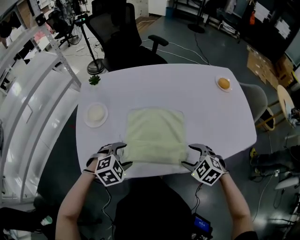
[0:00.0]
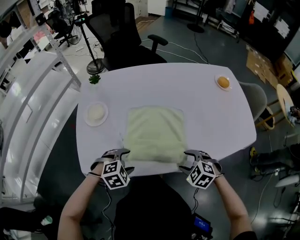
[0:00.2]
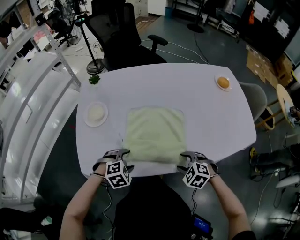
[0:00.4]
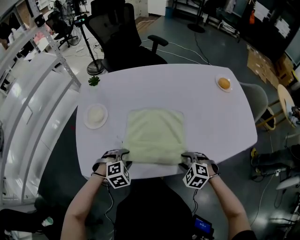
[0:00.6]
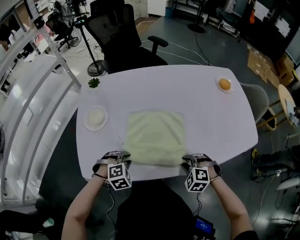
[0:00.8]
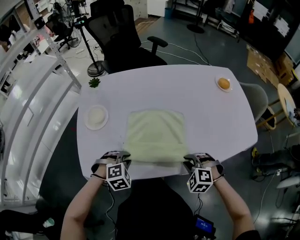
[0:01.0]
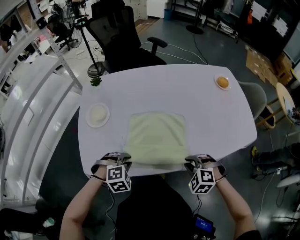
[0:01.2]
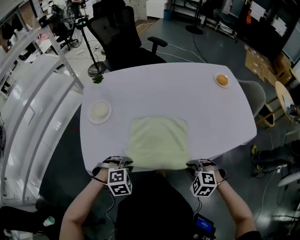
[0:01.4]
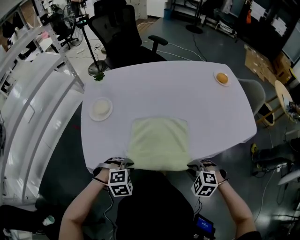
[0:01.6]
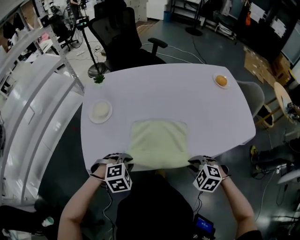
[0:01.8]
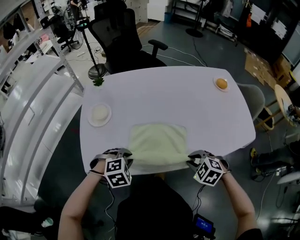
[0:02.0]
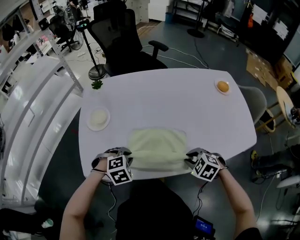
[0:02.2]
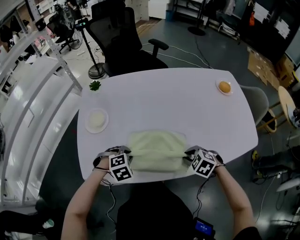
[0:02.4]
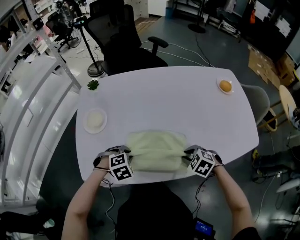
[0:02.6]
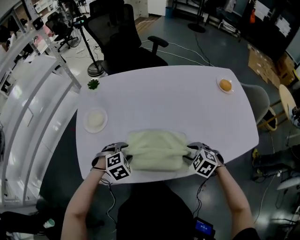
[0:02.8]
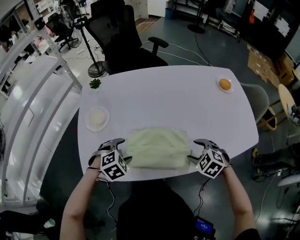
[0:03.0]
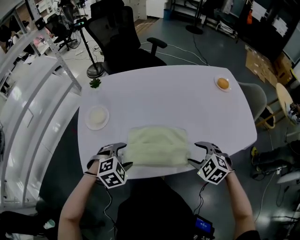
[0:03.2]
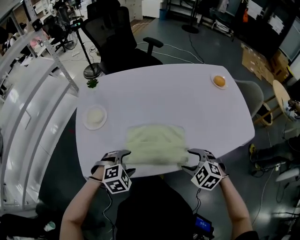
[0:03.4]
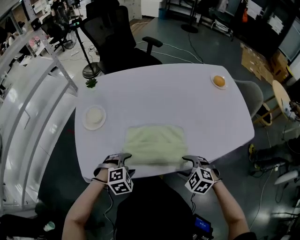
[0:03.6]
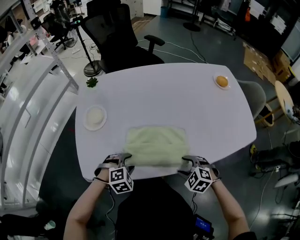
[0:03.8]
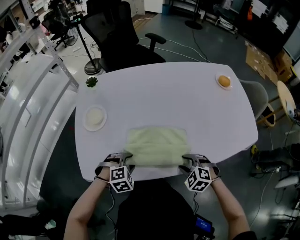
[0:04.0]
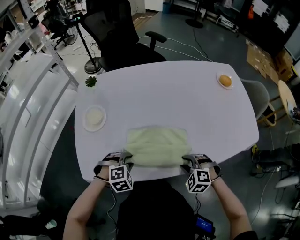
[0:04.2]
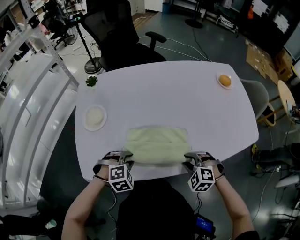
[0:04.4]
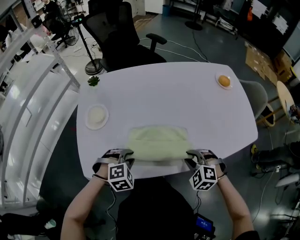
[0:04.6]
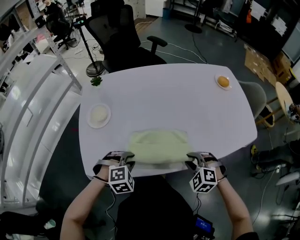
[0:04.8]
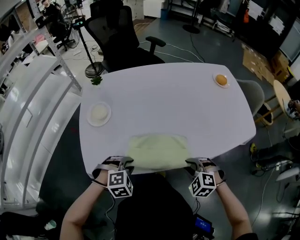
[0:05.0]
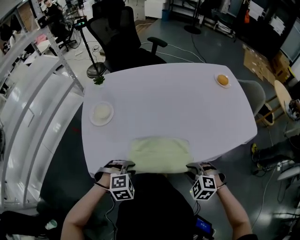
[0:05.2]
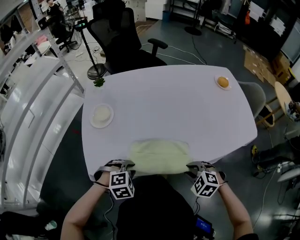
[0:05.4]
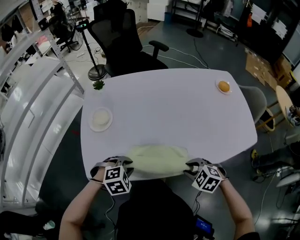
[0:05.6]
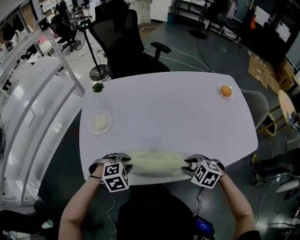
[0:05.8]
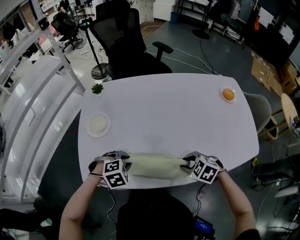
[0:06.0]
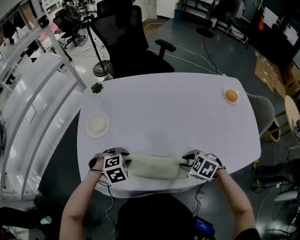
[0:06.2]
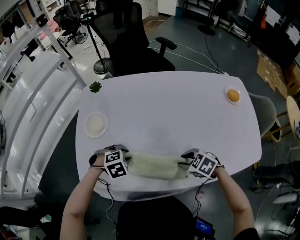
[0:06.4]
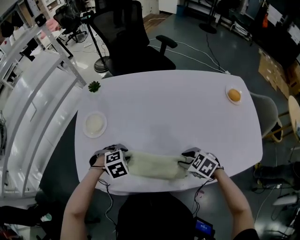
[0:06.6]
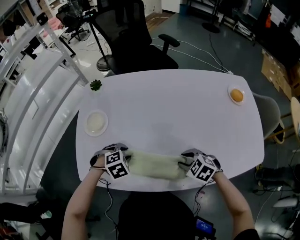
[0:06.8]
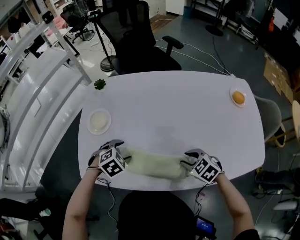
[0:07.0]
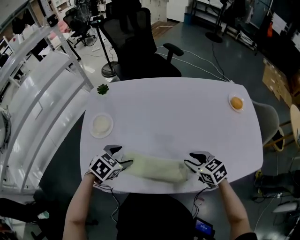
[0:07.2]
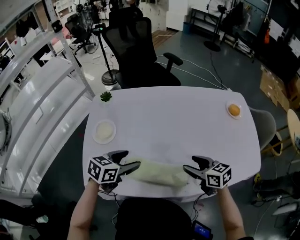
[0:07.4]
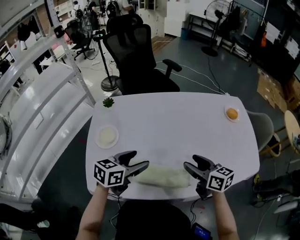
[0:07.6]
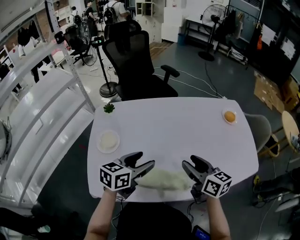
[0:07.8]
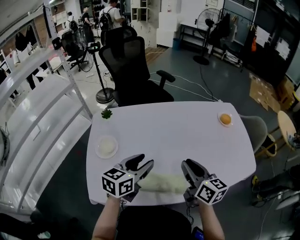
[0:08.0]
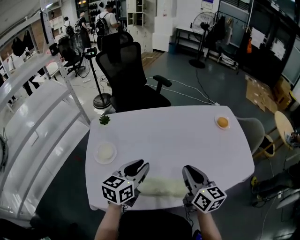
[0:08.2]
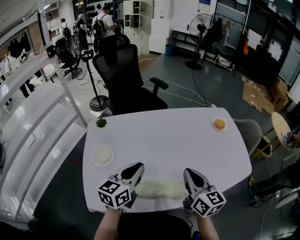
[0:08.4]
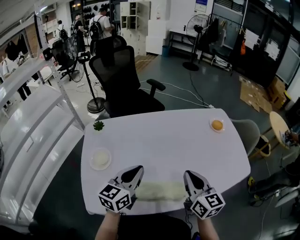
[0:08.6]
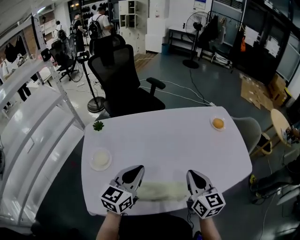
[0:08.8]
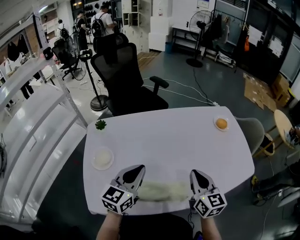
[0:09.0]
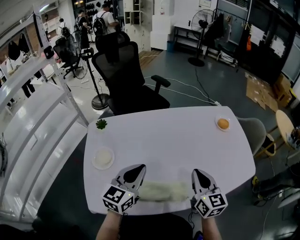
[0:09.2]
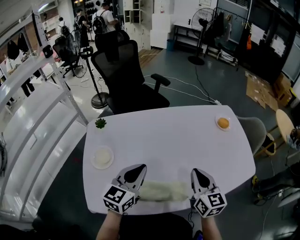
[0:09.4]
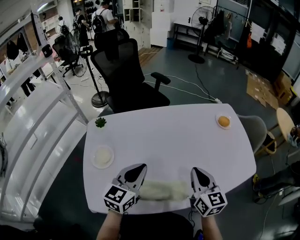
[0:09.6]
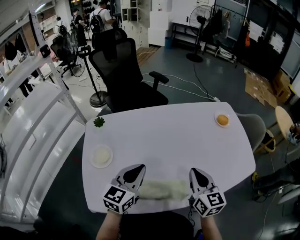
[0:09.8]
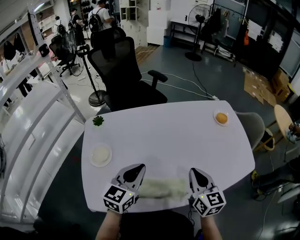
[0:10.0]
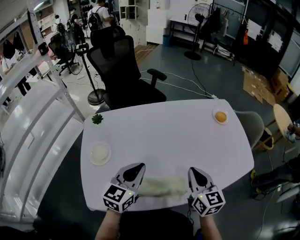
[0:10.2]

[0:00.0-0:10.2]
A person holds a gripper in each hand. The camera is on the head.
0:00.0 to 0:01.4: The grippers both shift backward by approximately 10 cm. The left gripper closes. Meanwhile the right gripper closes up.
0:01.4 to 0:03.0: Both grippers move forward, approximately 10 cm. The left gripper opens. The right gripper opens up.
0:03.0 to 0:04.4: The left gripper closes up. Meanwhile the right gripper travels backward by about 5 cm, and closes up.
0:04.4 to 0:05.8: The right gripper travels backward and back again, roughly 10 cm each way; the left gripper goes backward and returns, about 10 cm each way.
0:05.8 to 0:07.2: The right gripper changes place by about 10 cm, and rotates roughly 30 degrees, while the left gripper shifts by about 10 cm, swivels approximately 40 degrees, and opens.
0:07.2 to 0:08.8: Both grippers move upward, some 15 cm. The right gripper tips its fingers upward by about 30 degrees, and closes its fingers, while the left gripper points its fingers about 50 degrees further upward, and closes up.
0:08.8 to 0:10.2: The grippers move only a little.

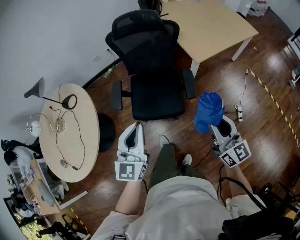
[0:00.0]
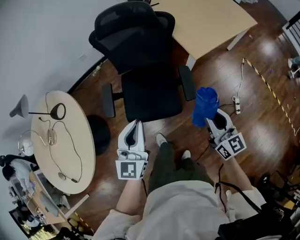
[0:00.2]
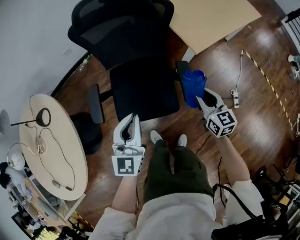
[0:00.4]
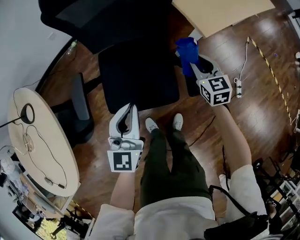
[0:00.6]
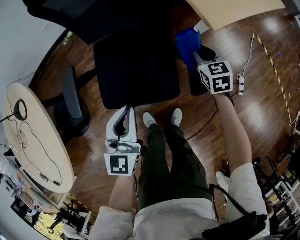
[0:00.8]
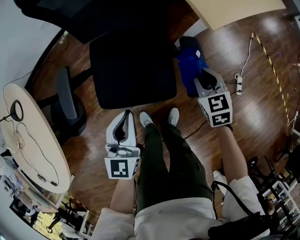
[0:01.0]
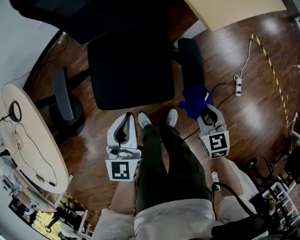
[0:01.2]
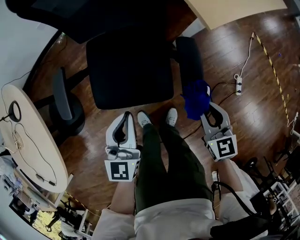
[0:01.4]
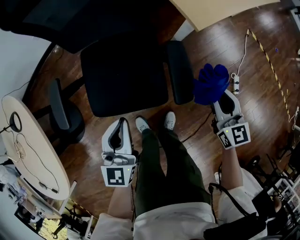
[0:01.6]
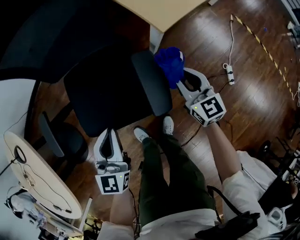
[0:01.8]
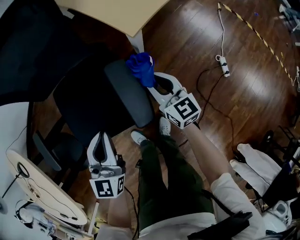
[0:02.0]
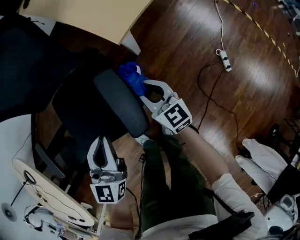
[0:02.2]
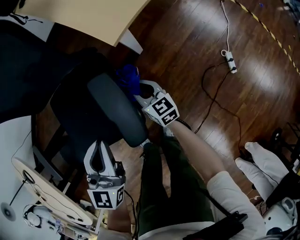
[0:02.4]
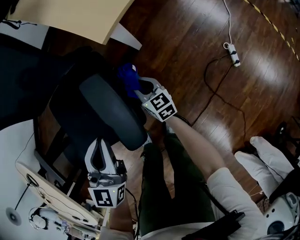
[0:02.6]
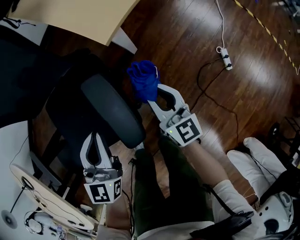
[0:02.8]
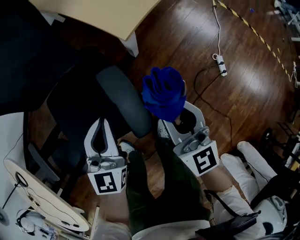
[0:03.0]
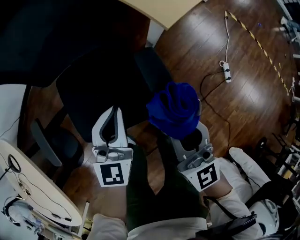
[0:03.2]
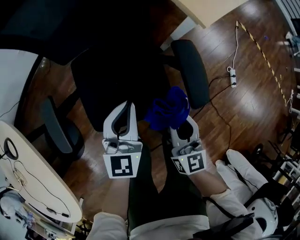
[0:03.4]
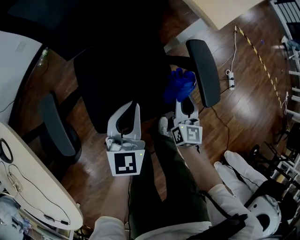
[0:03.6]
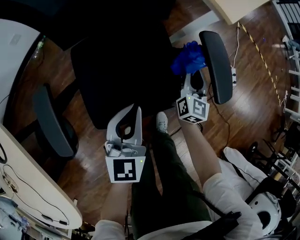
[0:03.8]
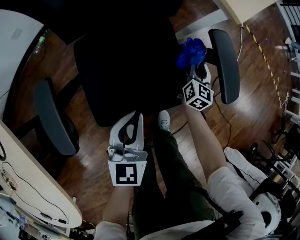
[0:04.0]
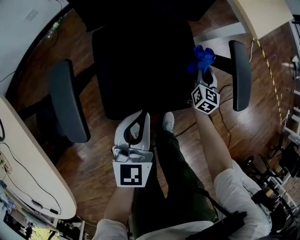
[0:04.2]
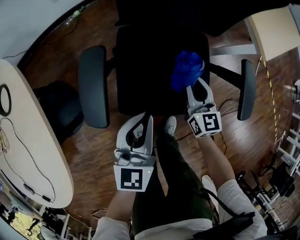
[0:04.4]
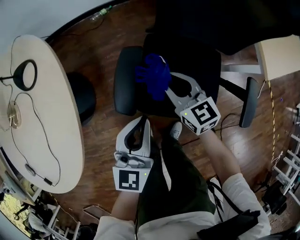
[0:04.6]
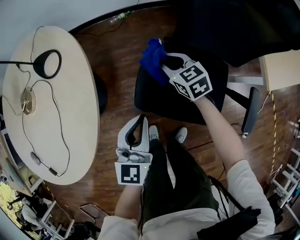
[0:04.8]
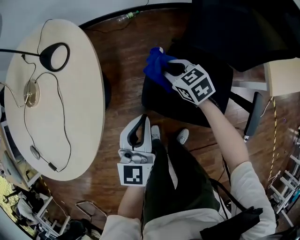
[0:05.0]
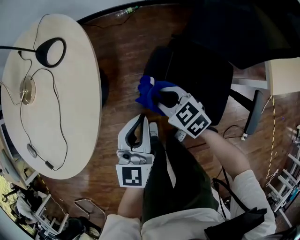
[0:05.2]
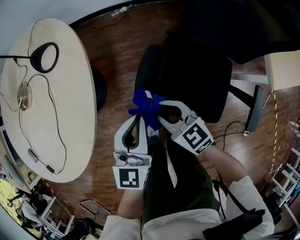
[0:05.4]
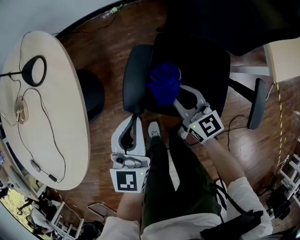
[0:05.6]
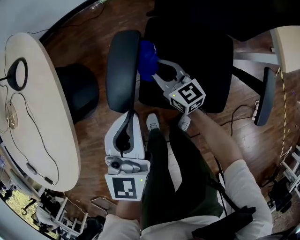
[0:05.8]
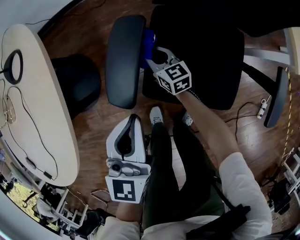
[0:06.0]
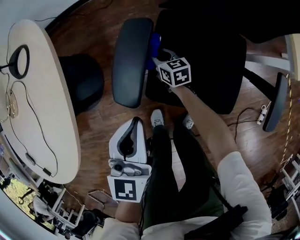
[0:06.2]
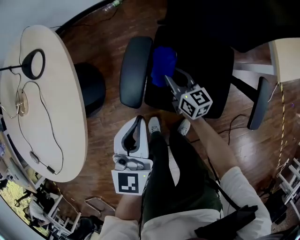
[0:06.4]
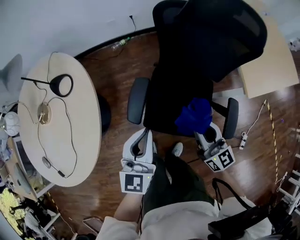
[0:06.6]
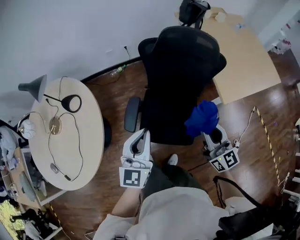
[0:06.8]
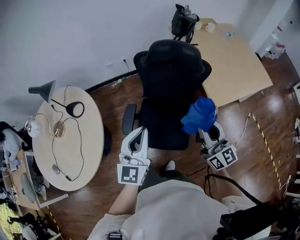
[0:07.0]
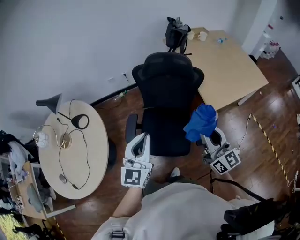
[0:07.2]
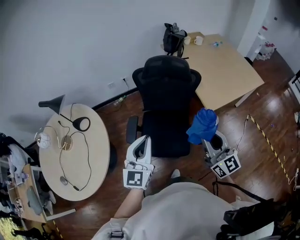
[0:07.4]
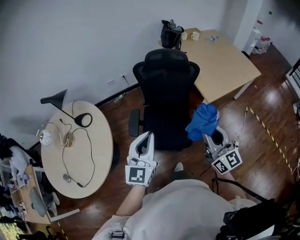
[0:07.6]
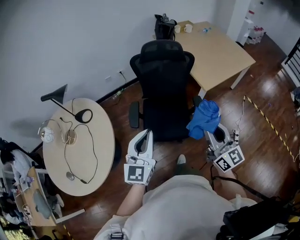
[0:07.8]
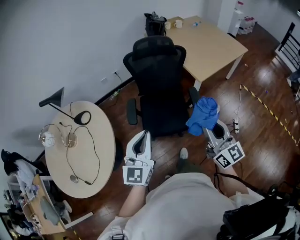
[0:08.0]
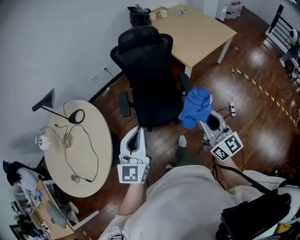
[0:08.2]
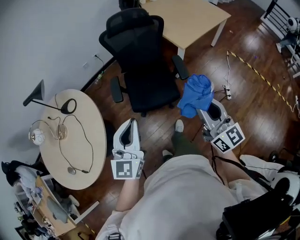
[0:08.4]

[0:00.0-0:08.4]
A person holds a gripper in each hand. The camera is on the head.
0:00.0 to 0:01.4: Both grippers move downward and forward, roughly 35 cm. The right gripper tilts its fingers approximately 30 degrees downward.
0:01.4 to 0:02.8: The right gripper shifts about 20 cm downward, forward and to the right, and turns by roughly 30 degrees, while the left gripper travels to the right, forward and downward by some 20 cm.
0:02.8 to 0:04.2: The right gripper is displaced to the left and downward by approximately 15 cm, and swivels approximately 30 degrees. Meanwhile the left gripper travels to the left and backward by some 25 cm.
0:04.2 to 0:05.6: The right gripper moves approximately 40 cm, and swivels some 70 degrees. The left gripper ends up about 25 cm from where it was, and turns by about 30 degrees.
0:05.6 to 0:07.0: The two grippers go about 40 cm upward and to the right. The right gripper rotates approximately 30 degrees.
0:07.0 to 0:08.4: Both grippers travel together backward, approximately 25 cm.

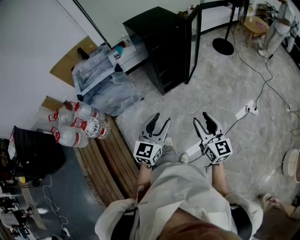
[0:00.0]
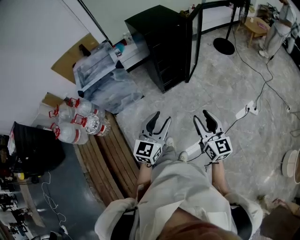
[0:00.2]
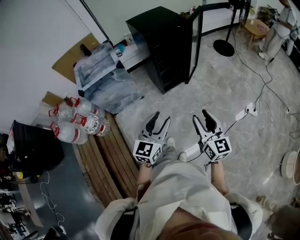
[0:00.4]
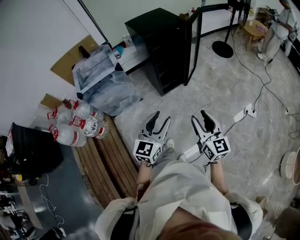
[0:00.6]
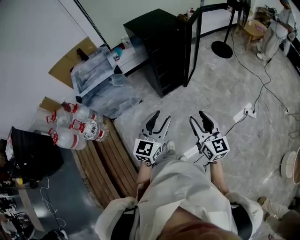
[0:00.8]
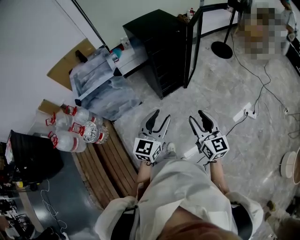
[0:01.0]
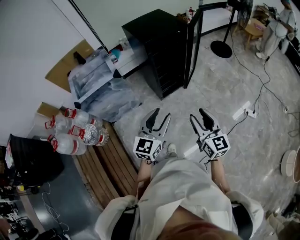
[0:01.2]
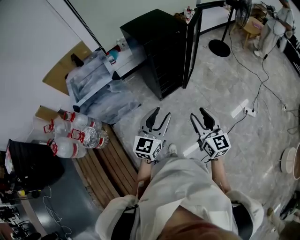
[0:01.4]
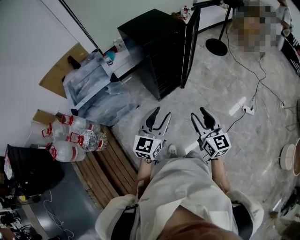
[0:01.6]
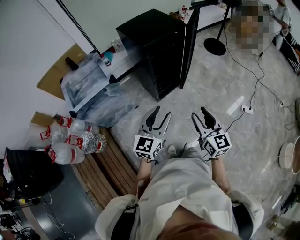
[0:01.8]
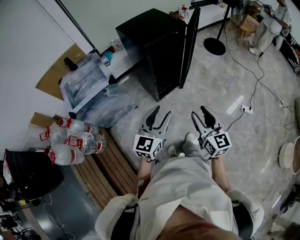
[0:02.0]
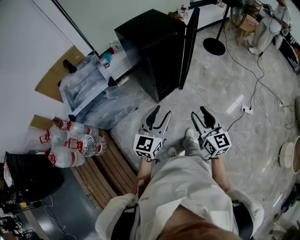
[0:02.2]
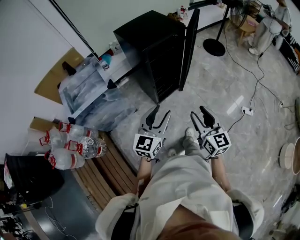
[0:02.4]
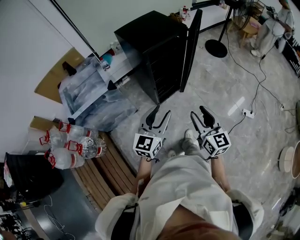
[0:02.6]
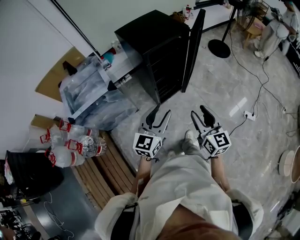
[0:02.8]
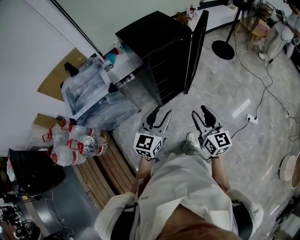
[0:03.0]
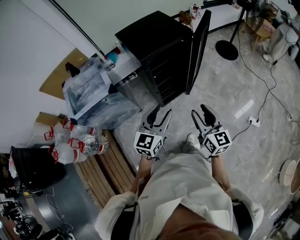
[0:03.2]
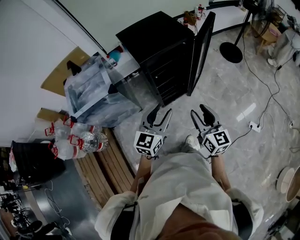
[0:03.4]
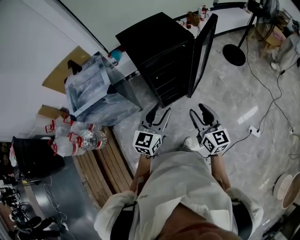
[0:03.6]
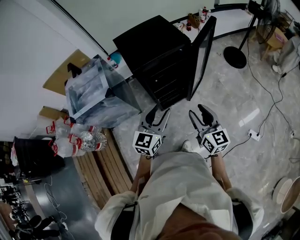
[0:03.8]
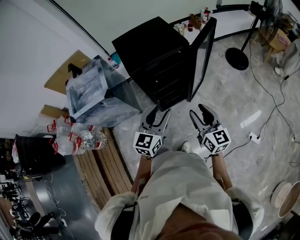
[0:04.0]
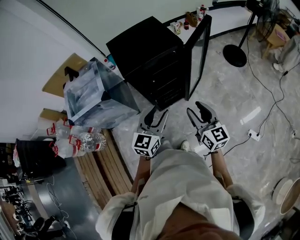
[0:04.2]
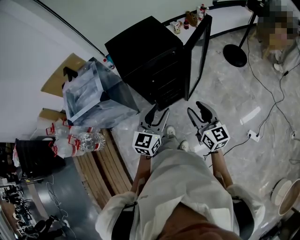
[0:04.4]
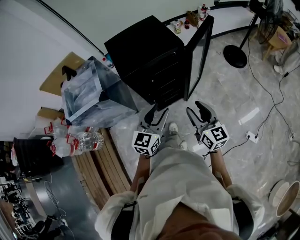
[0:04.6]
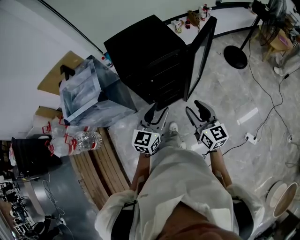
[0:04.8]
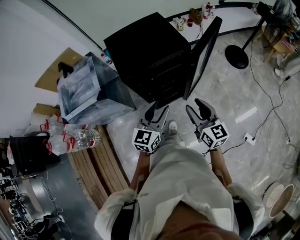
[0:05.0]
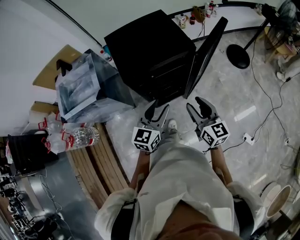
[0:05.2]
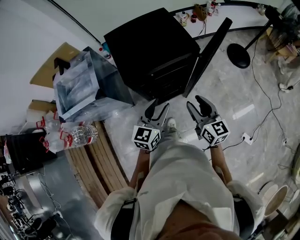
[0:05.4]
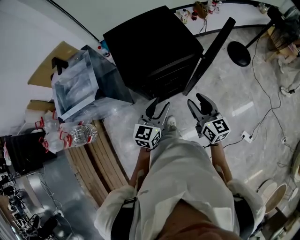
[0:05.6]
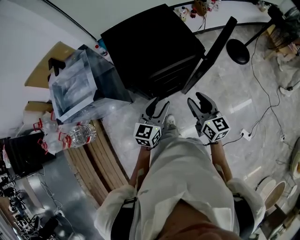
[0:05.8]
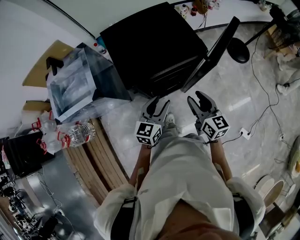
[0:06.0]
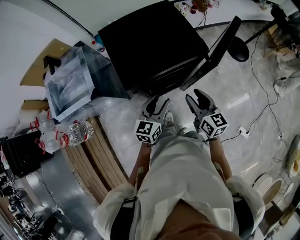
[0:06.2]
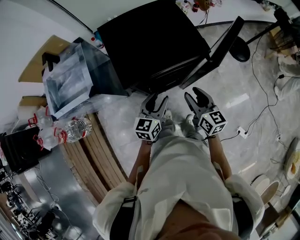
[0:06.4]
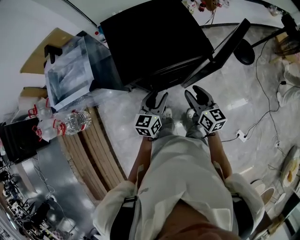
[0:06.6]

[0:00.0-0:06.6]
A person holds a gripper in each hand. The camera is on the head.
0:00.0 to 0:01.6: The two grippers go some 15 cm forward and to the left.
0:01.6 to 0:03.2: Both grippers travel together forward, some 15 cm.
0:03.2 to 0:05.0: Both grippers move forward and to the right, roughly 20 cm.
0:05.0 to 0:06.6: The right gripper shifts some 15 cm forward and downward. The left gripper goes roughly 15 cm downward and forward.
